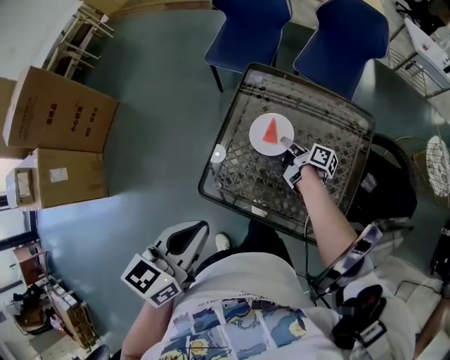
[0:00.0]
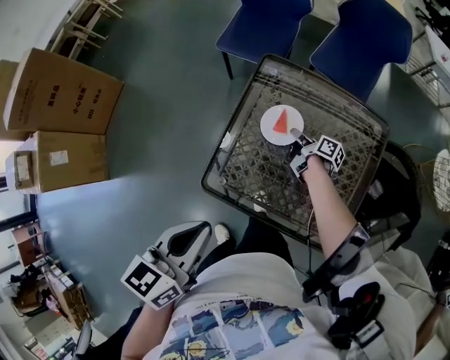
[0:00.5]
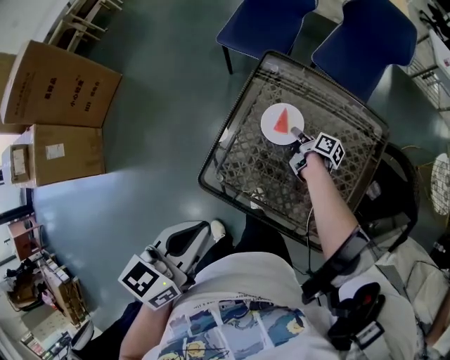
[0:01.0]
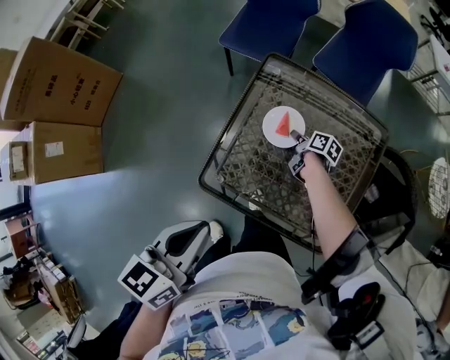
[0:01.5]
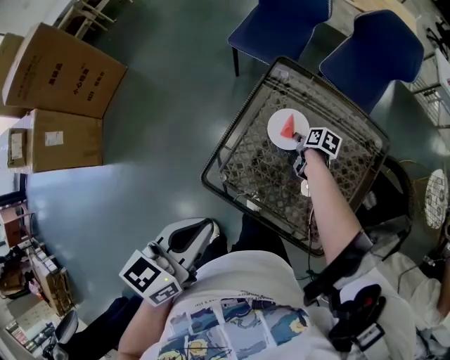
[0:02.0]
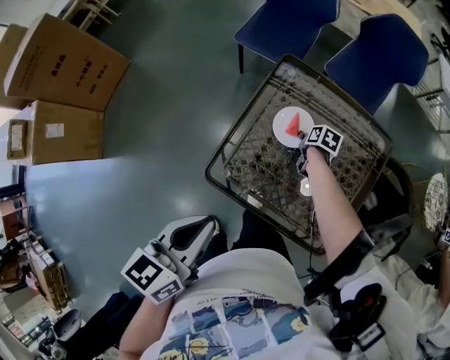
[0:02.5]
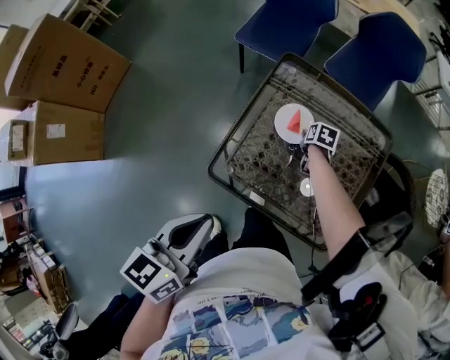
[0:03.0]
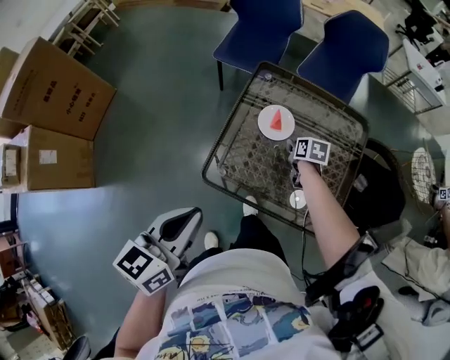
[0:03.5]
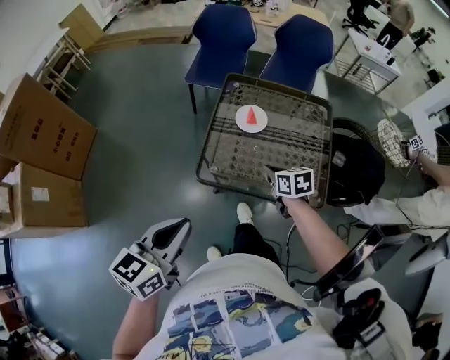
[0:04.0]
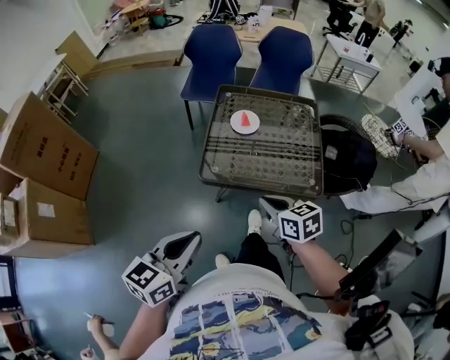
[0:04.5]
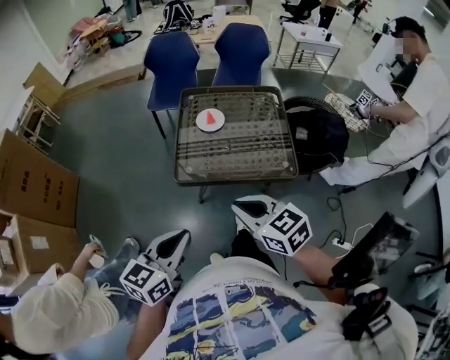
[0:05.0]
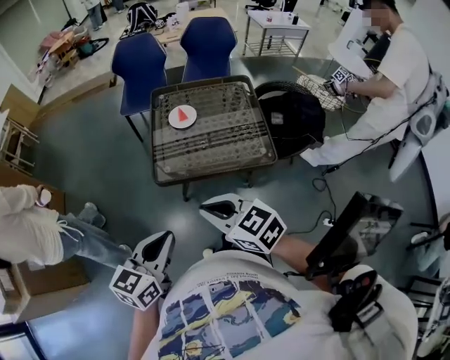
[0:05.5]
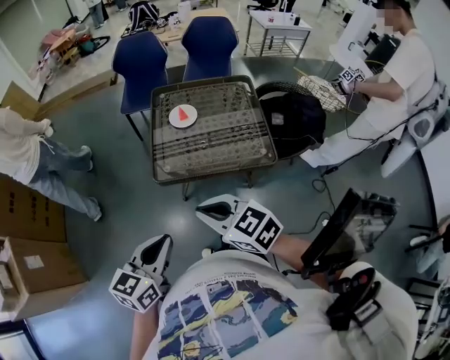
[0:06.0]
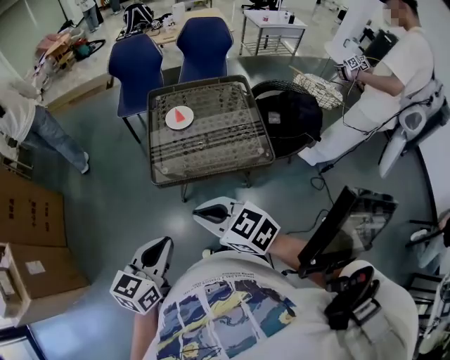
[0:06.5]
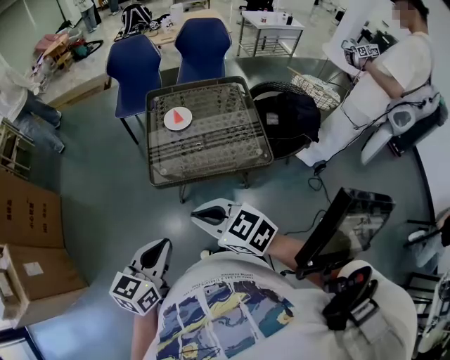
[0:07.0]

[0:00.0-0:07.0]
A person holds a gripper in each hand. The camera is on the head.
0:00.0 to 0:02.0: The right gripper shifts approximately 10 cm downward, and tips its fingers downward by some 40 degrees.
0:02.0 to 0:03.5: The left gripper goes approximately 10 cm to the left and backward. Meanwhile the right gripper shifts approximately 10 cm upward and backward.
0:03.5 to 0:05.0: The right gripper shifts some 60 cm backward and upward, changes its angle by roughly 40 degrees, and closes its fingers. Meanwhile the left gripper moves backward, roughly 25 cm, and swivels approximately 20 degrees.
0:05.0 to 0:07.0: The right gripper moves to the left, some 5 cm.

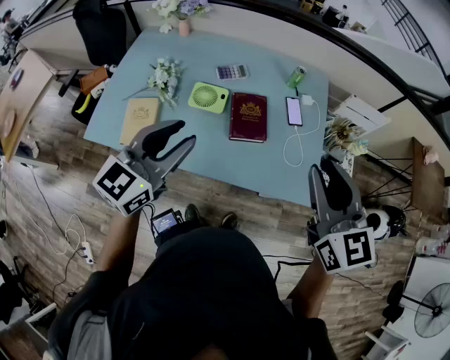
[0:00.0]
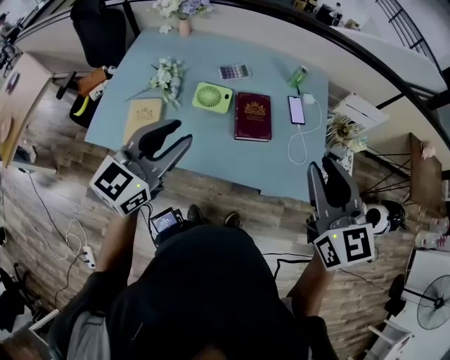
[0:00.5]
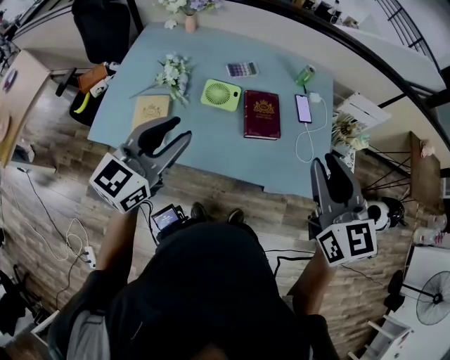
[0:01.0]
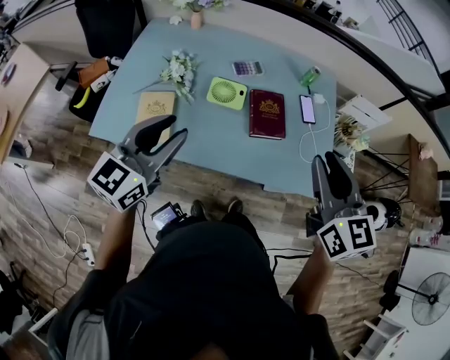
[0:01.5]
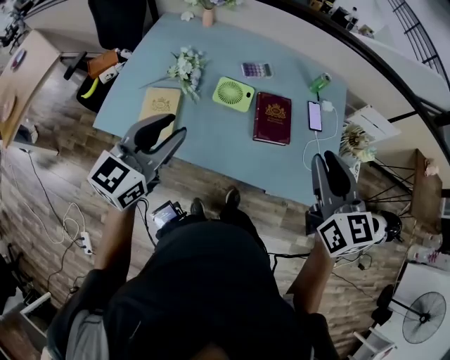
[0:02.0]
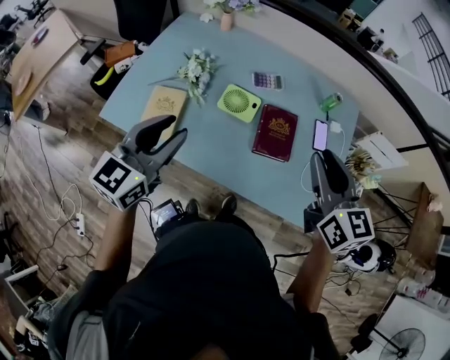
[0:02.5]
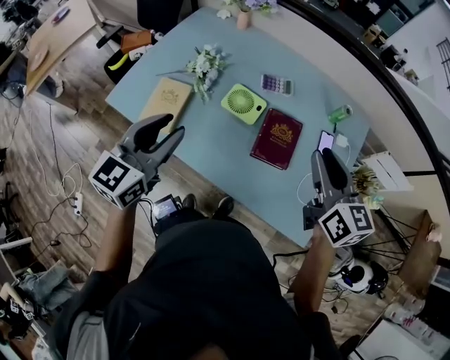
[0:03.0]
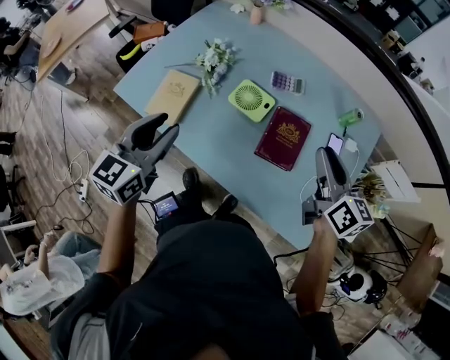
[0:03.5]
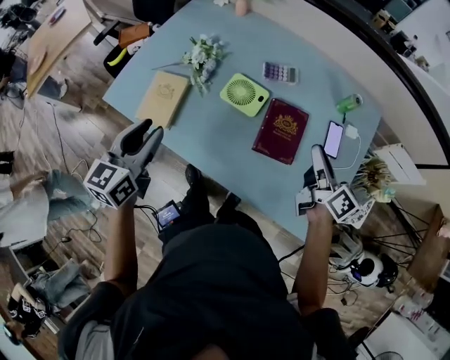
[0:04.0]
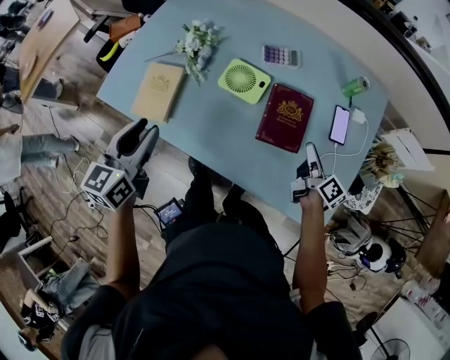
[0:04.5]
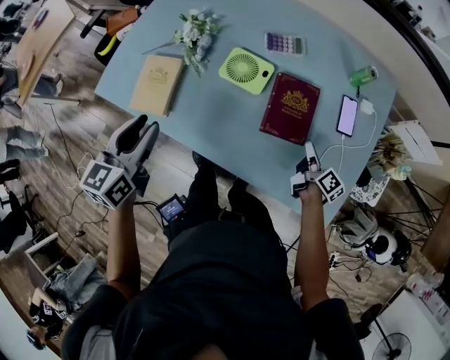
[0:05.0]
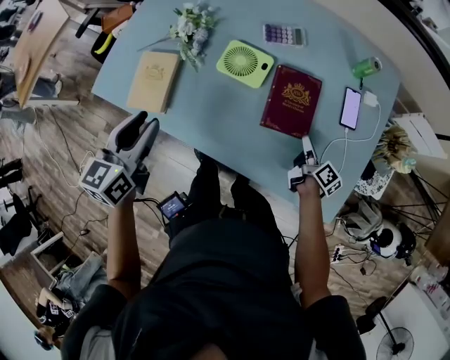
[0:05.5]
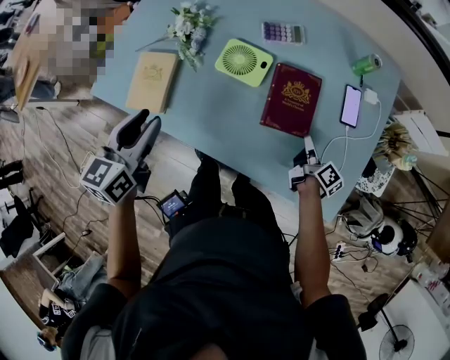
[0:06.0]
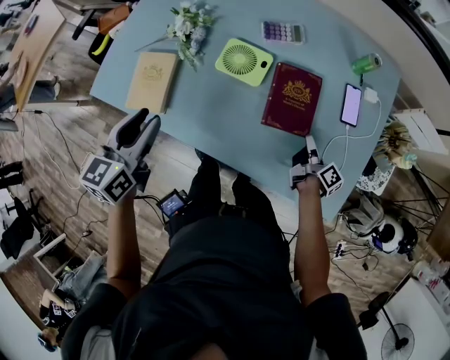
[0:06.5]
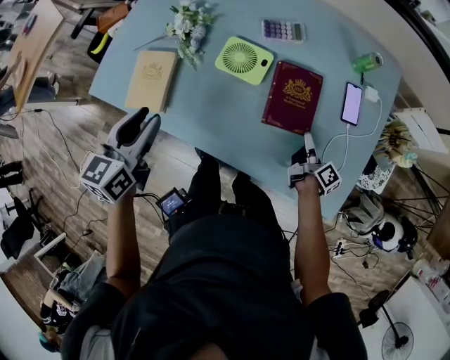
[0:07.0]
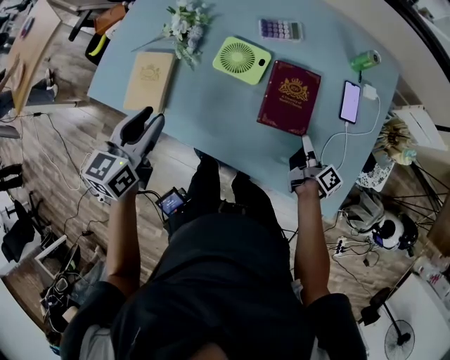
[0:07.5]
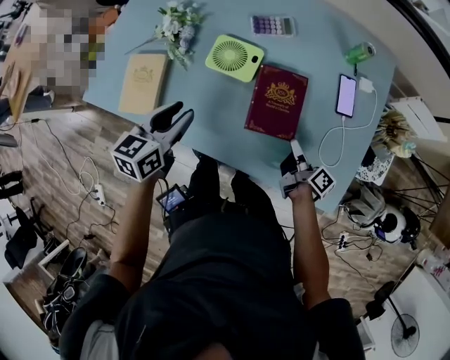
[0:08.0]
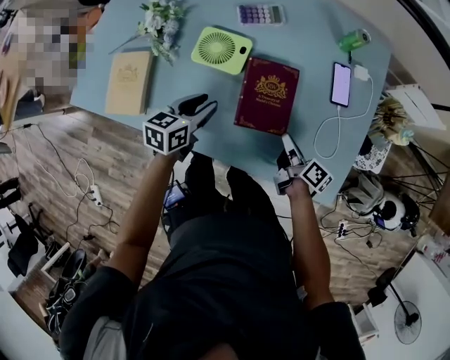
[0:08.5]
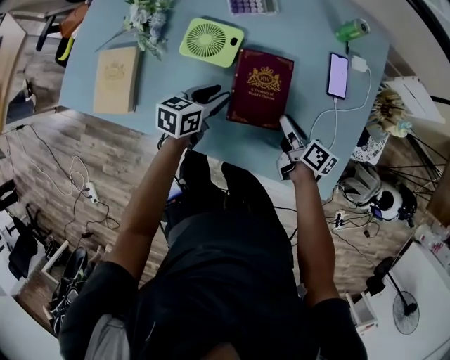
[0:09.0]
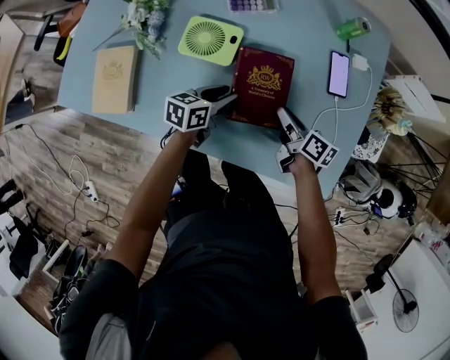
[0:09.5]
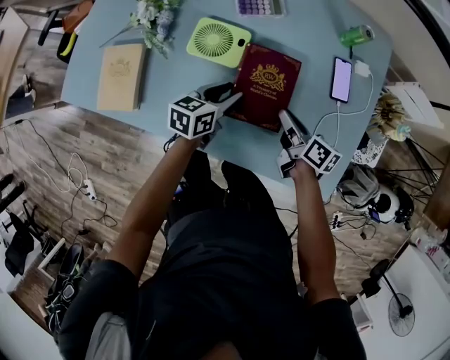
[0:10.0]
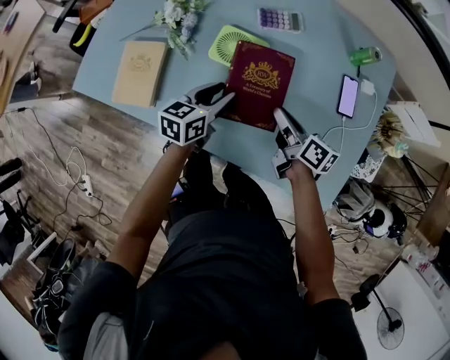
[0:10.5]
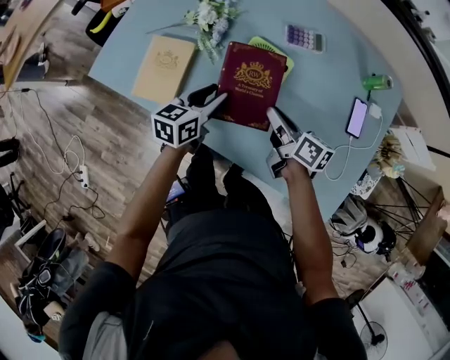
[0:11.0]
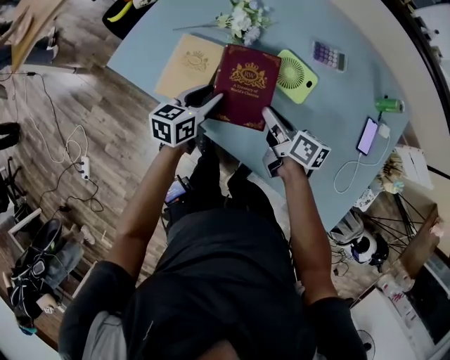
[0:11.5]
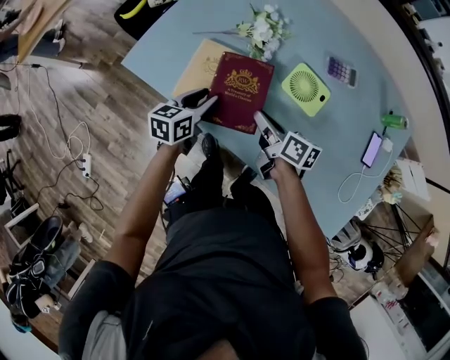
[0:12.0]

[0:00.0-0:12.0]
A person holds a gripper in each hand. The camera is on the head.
0:00.0 to 0:02.0: The two grippers go about 10 cm to the left.
0:02.0 to 0:04.0: The right gripper goes approximately 25 cm downward, forward and to the right, and twists about 50 degrees clockwise, seen from behind. The left gripper shifts about 10 cm downward, and turns by roughly 30 degrees.
0:04.0 to 0:06.0: The right gripper goes some 25 cm downward, changes its angle by some 30 degrees, and closes up, while the left gripper is displaced downward by roughly 5 cm.
0:06.0 to 0:08.0: The right gripper opens and closes again, while the left gripper goes roughly 10 cm downward and to the right.
0:08.0 to 0:10.0: The right gripper changes place by roughly 5 cm, and changes its angle by roughly 20 degrees. The left gripper travels to the right, downward and forward by roughly 20 cm.
0:10.0 to 0:12.0: Both grippers move to the left, some 35 cm. The left gripper swivels about 20 degrees; the right gripper changes its angle by approximately 20 degrees.

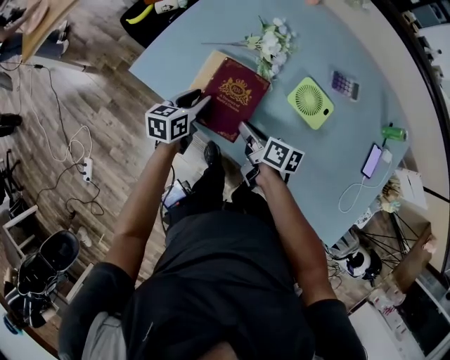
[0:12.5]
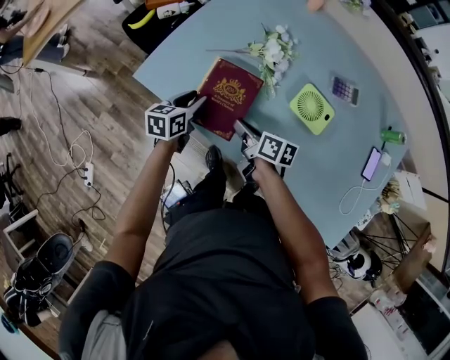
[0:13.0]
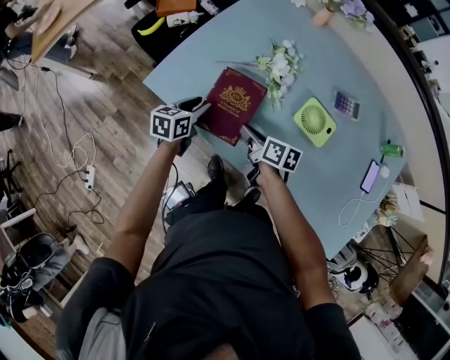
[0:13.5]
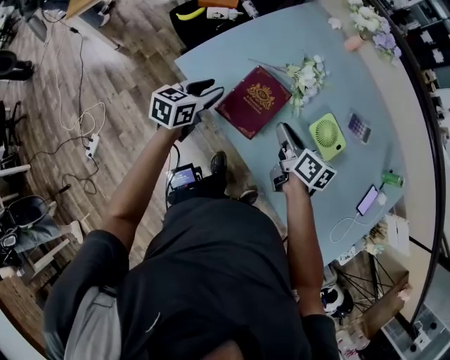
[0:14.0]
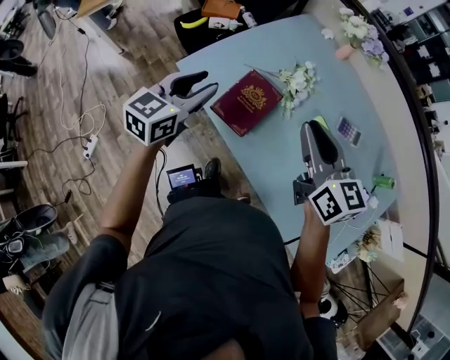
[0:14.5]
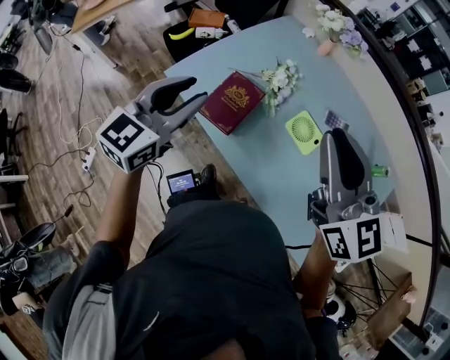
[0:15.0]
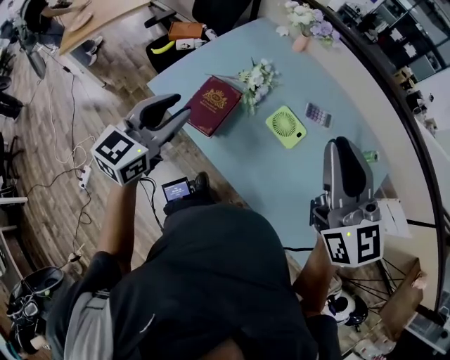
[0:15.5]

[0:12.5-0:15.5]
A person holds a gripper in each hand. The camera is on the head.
0:12.5 to 0:14.0: The right gripper is displaced upward by some 10 cm; the left gripper goes approximately 10 cm upward and to the left.
0:14.0 to 0:15.5: The left gripper is displaced upward, backward and to the right by roughly 30 cm, and turns by some 30 degrees. The right gripper goes roughly 40 cm upward and to the right, and rolls counterclockwise, seen from behind, by some 50 degrees.

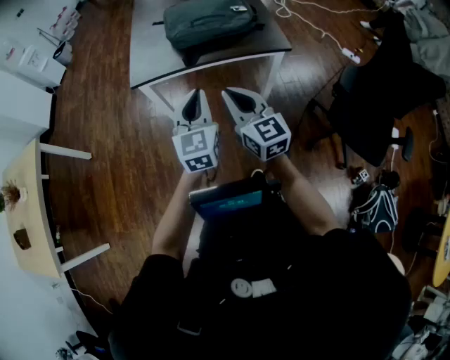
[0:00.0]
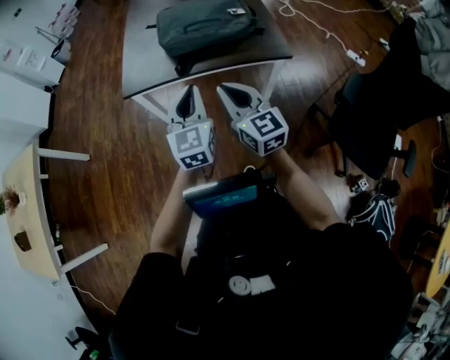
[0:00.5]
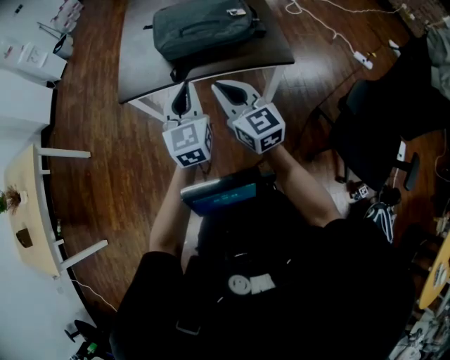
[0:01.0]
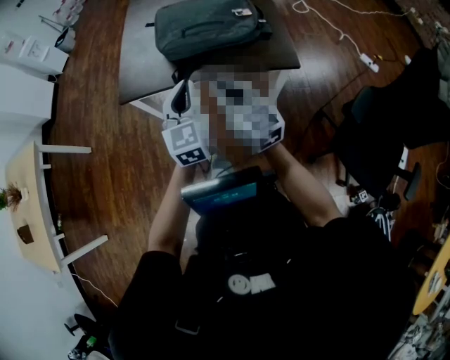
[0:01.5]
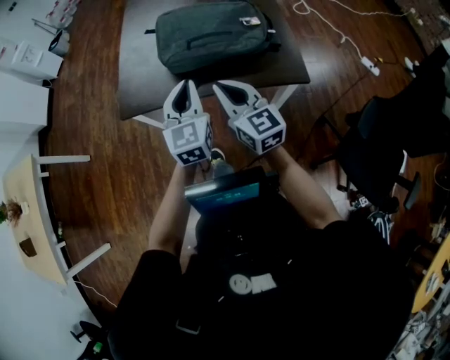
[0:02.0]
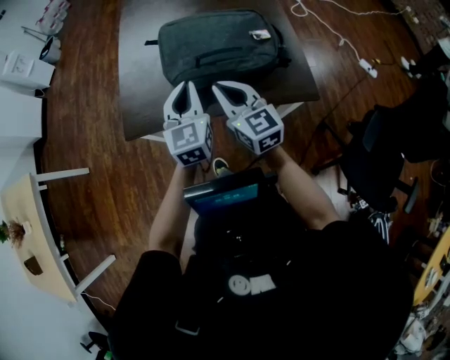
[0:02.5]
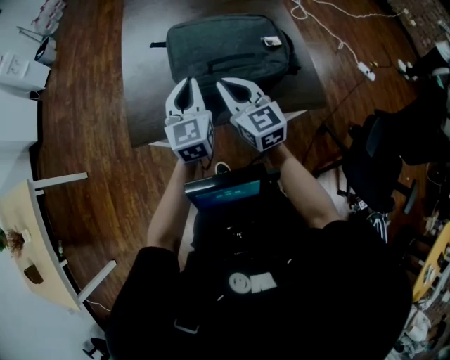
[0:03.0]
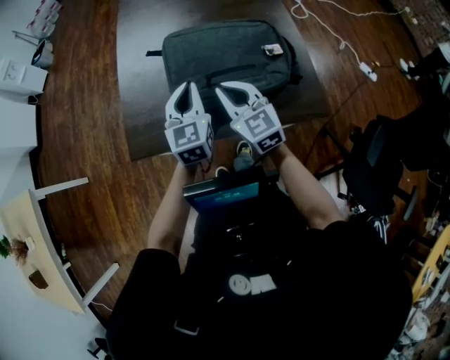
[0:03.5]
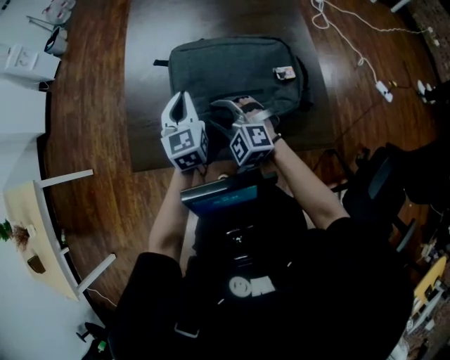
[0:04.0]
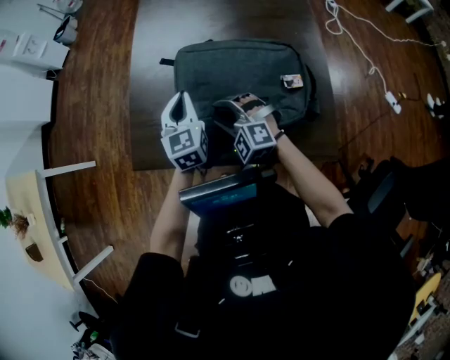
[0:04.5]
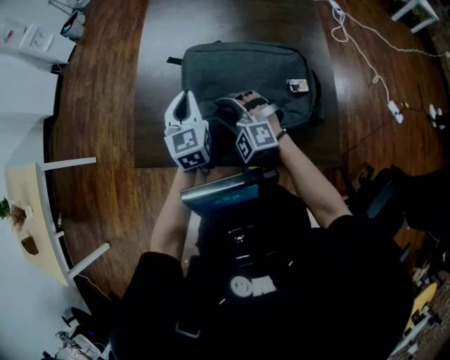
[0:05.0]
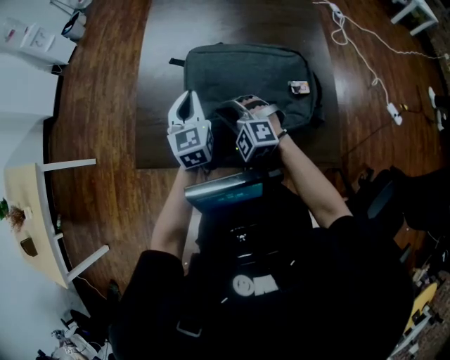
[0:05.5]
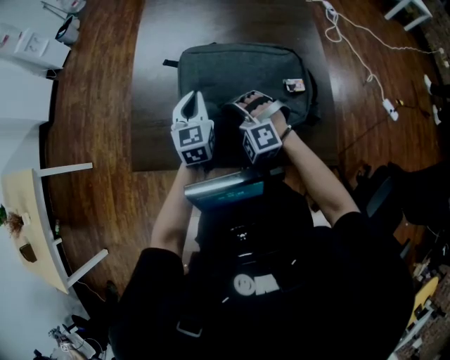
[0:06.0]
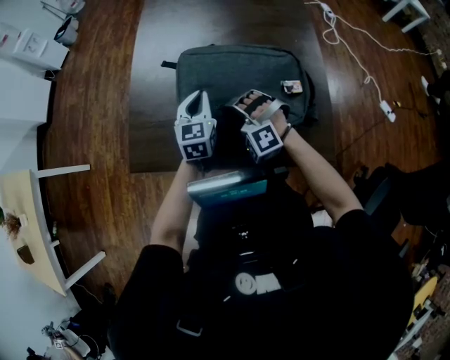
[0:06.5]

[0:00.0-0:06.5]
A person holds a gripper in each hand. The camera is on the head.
0:00.0 to 0:02.0: The two grippers go approximately 25 cm forward.
0:02.0 to 0:04.5: The right gripper goes approximately 25 cm forward and downward, rotates around the line of its fingers by about 60 degrees, counterclockwise from behind, and opens up. Meanwhile the left gripper shifts some 25 cm forward.
0:04.5 to 0:06.5: The left gripper moves approximately 5 cm. Meanwhile the right gripper swivels about 30 degrees, and closes.
